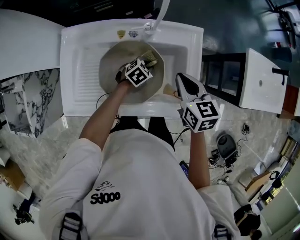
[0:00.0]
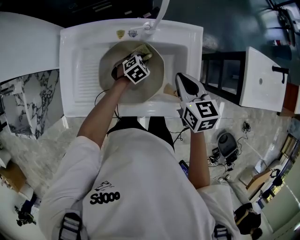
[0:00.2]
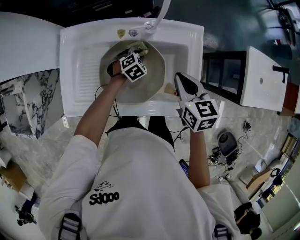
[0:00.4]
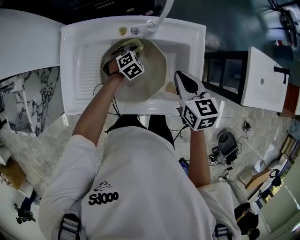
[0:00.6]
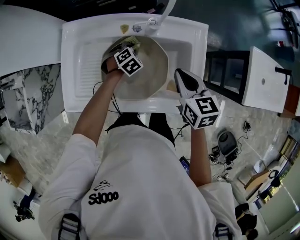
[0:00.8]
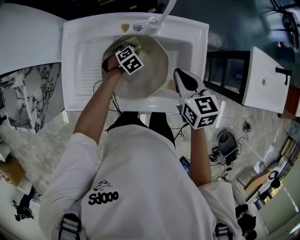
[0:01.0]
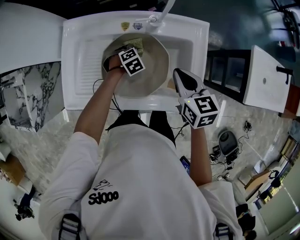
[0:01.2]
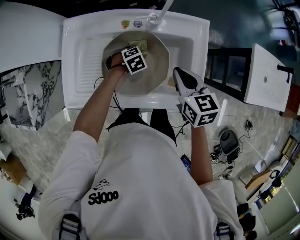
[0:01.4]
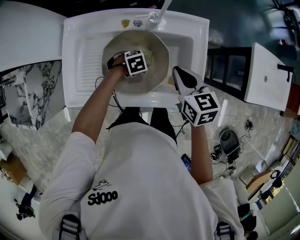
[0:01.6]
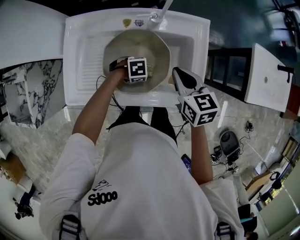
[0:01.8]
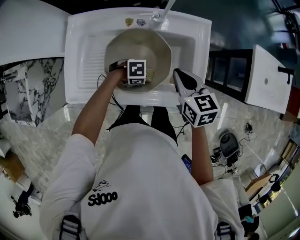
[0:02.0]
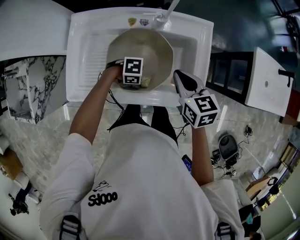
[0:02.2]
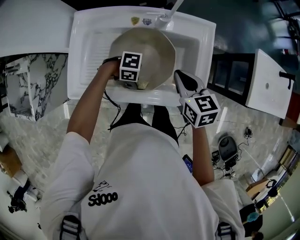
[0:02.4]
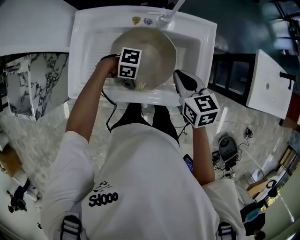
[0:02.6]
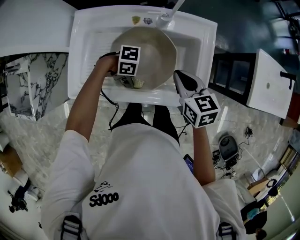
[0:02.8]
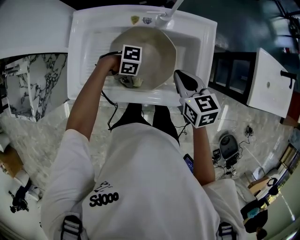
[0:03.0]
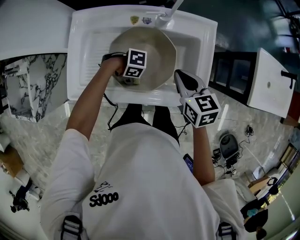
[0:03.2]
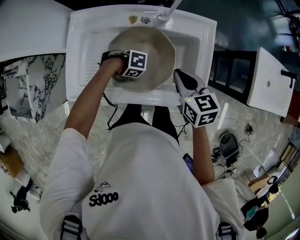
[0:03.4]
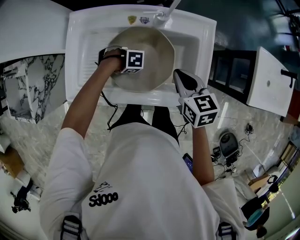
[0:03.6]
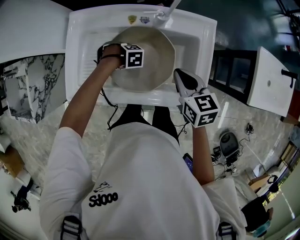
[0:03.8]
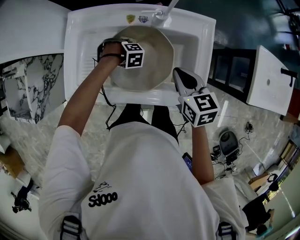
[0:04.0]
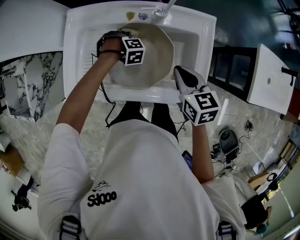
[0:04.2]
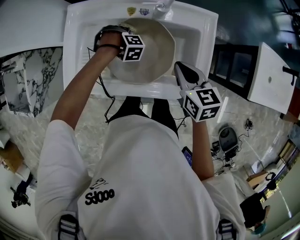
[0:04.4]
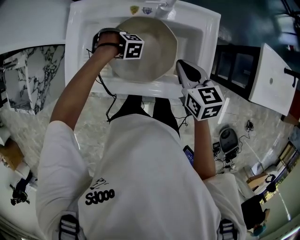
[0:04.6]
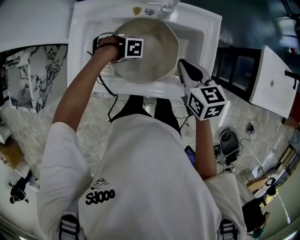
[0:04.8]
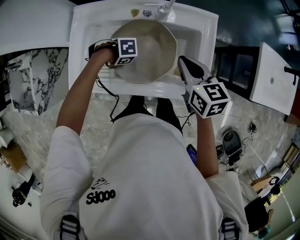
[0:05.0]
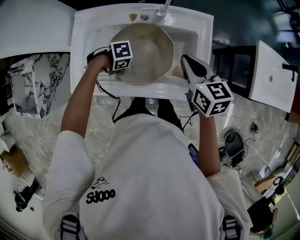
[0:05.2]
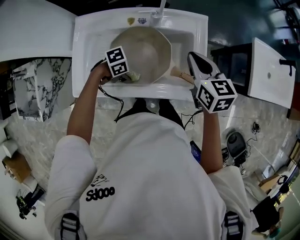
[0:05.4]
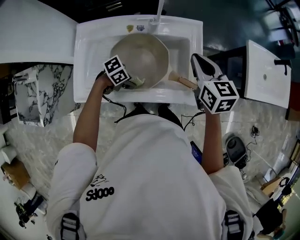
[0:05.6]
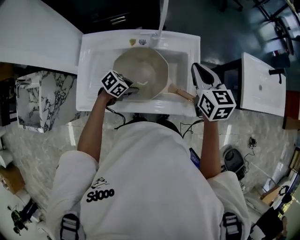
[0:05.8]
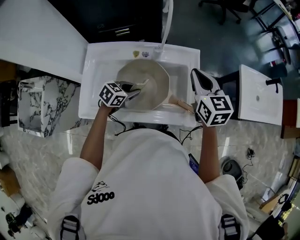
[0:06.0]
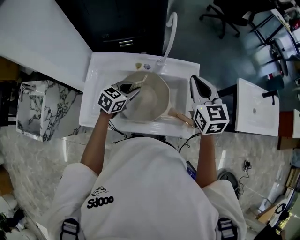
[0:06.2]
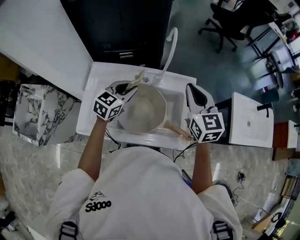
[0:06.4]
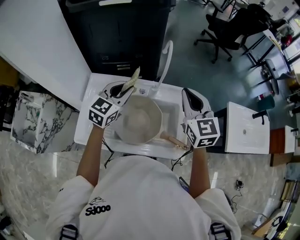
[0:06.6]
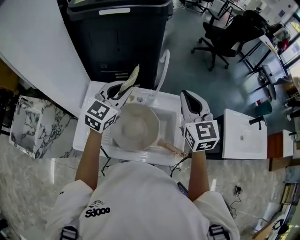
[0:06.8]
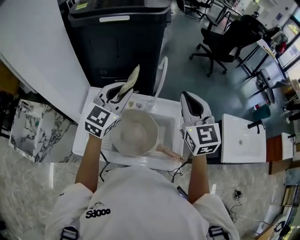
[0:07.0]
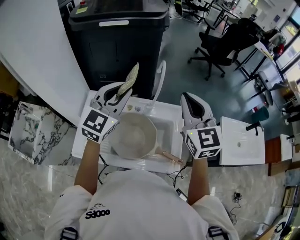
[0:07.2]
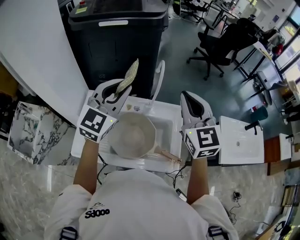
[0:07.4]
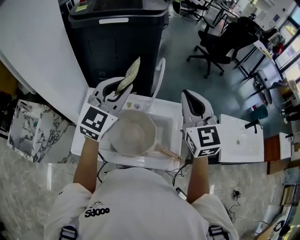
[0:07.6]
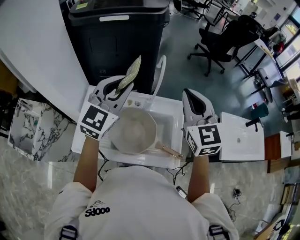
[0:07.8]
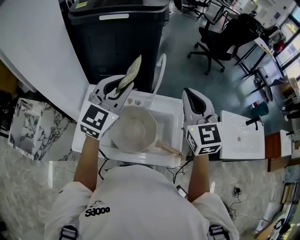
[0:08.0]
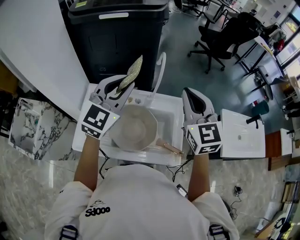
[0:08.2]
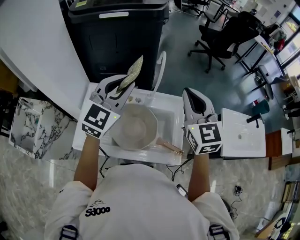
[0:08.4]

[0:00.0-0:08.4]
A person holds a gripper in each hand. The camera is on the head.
0:00.0 to 0:01.4: The left gripper changes its angle by approximately 20 degrees.
0:01.4 to 0:02.8: The left gripper shifts by some 20 cm, and tilts its fingers roughly 40 degrees upward.
0:02.8 to 0:04.2: The left gripper moves some 20 cm, and tips its fingers downward by some 40 degrees.
0:04.2 to 0:05.6: The left gripper shifts by some 20 cm, and points its fingers roughly 30 degrees further upward; the right gripper travels upward by some 10 cm.
0:05.6 to 0:07.0: The left gripper goes roughly 35 cm upward, and angles its fingers upward, by about 40 degrees. Meanwhile the right gripper moves upward, about 20 cm, and swivels some 30 degrees.
0:07.0 to 0:08.4: The left gripper heads upward, covering roughly 5 cm.

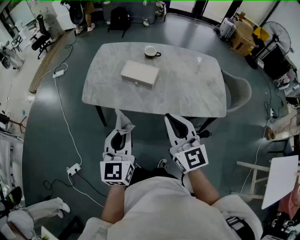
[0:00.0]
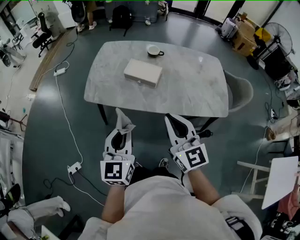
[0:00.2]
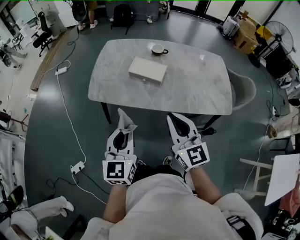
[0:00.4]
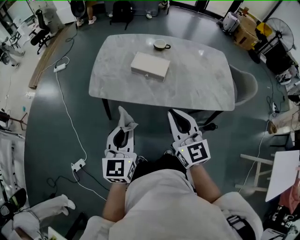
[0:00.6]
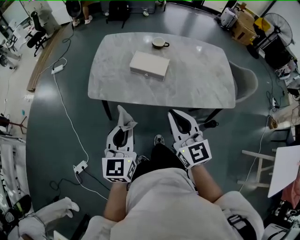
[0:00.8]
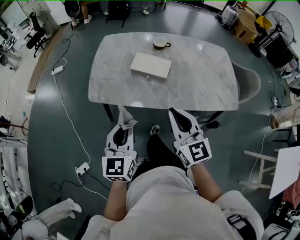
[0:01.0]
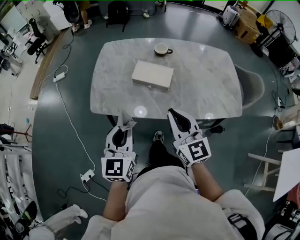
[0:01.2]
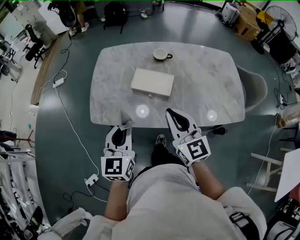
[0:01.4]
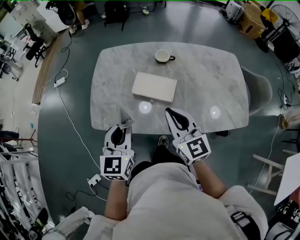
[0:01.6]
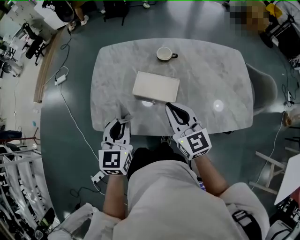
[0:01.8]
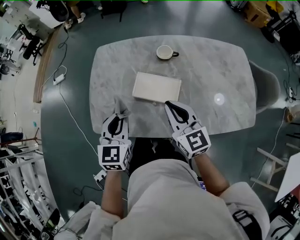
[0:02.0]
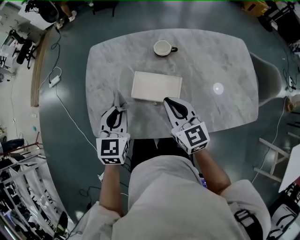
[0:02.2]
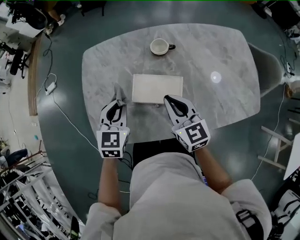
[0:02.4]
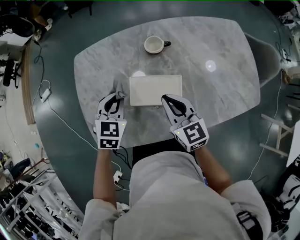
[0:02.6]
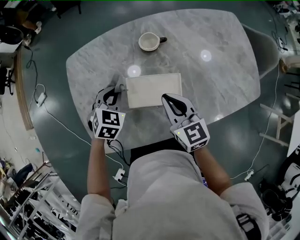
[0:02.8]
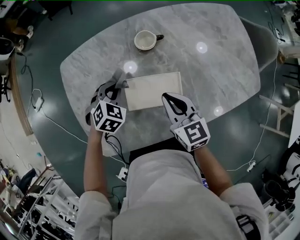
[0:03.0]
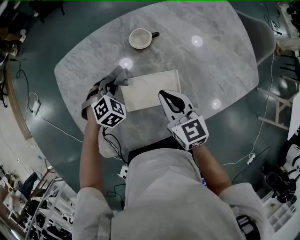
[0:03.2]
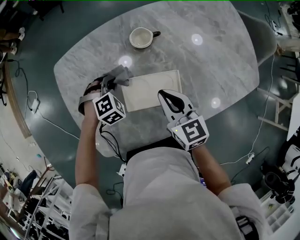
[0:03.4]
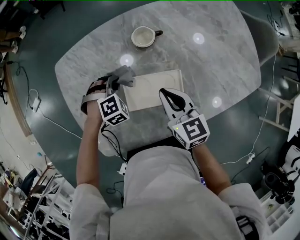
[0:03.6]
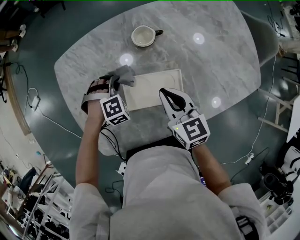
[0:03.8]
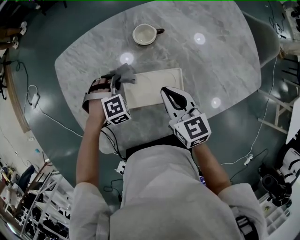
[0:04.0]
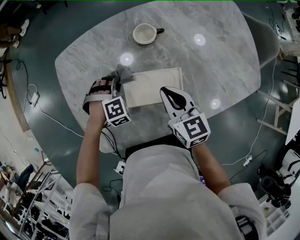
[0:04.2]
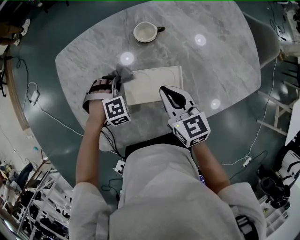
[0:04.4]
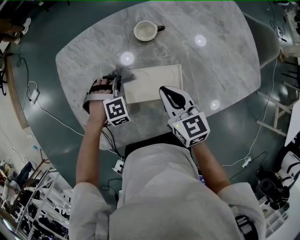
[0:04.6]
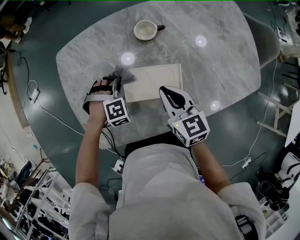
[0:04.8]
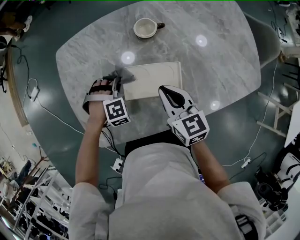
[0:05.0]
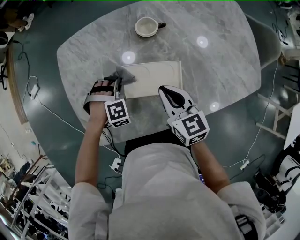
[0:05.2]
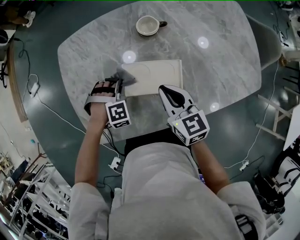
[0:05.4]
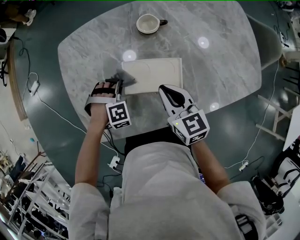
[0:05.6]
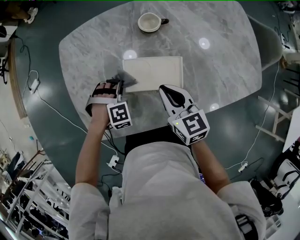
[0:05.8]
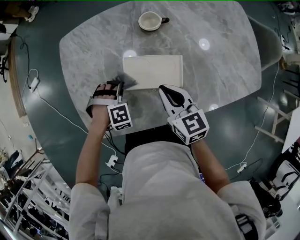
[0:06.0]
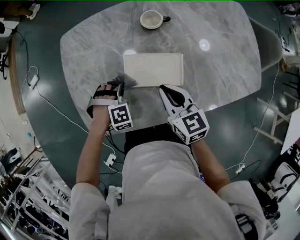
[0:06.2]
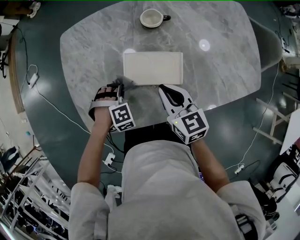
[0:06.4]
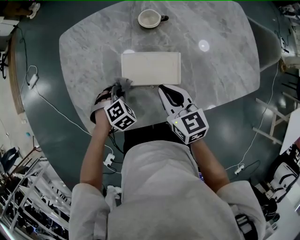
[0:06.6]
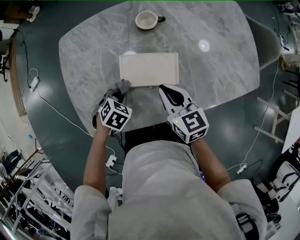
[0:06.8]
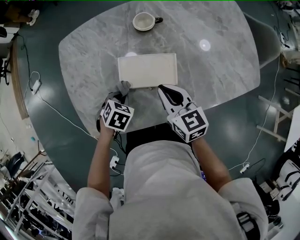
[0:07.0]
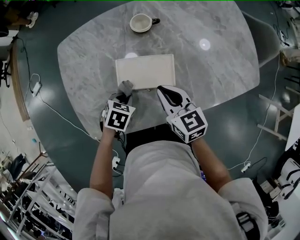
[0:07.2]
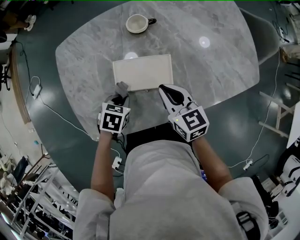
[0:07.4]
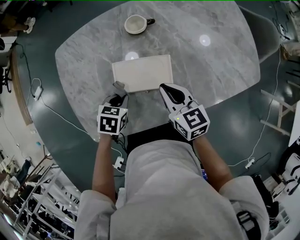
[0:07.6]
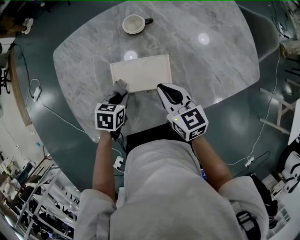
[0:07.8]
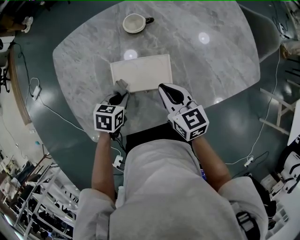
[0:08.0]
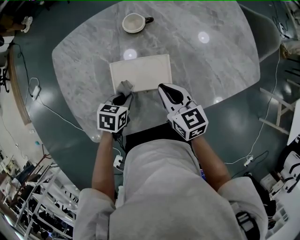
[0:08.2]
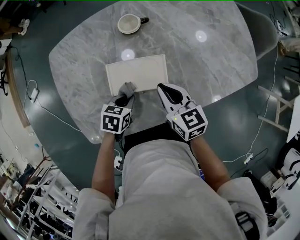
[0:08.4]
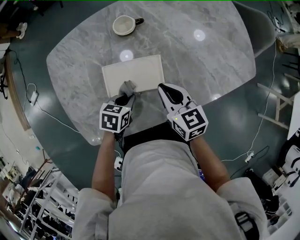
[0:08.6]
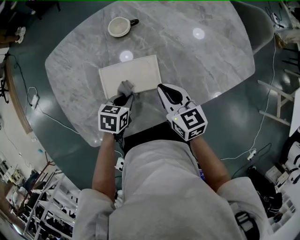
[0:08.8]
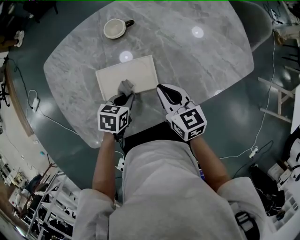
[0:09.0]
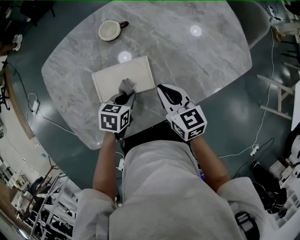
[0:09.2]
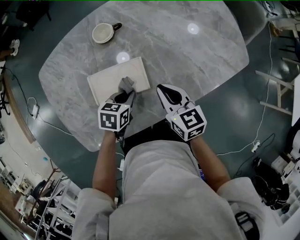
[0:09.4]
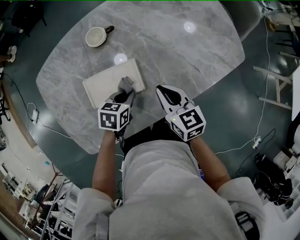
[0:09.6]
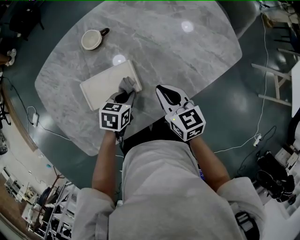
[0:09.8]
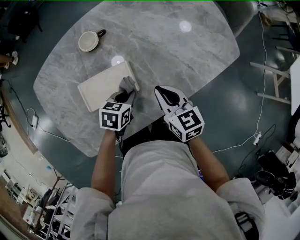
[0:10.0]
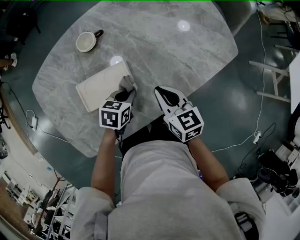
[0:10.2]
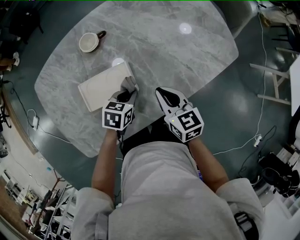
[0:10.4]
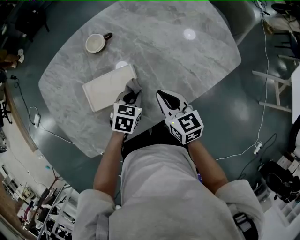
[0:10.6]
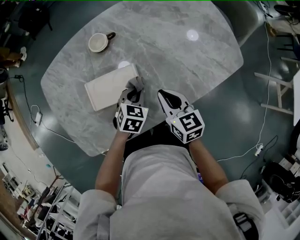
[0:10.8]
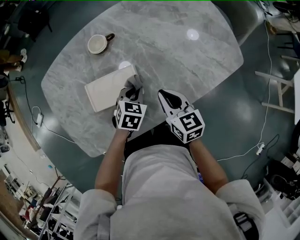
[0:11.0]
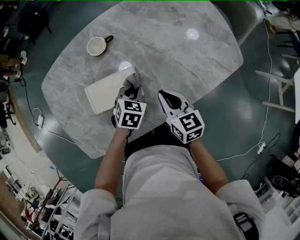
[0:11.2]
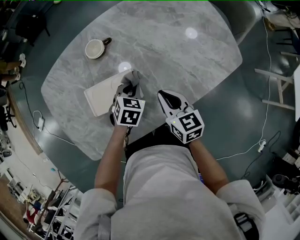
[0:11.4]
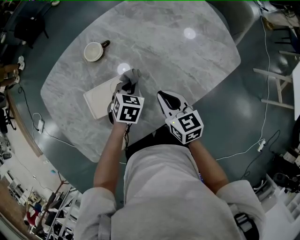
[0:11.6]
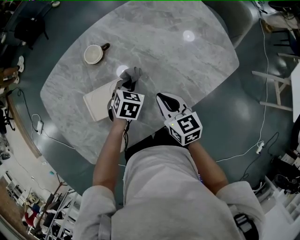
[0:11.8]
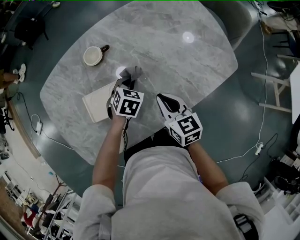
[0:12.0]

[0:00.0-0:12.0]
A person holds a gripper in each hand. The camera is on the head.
0:00.0 to 0:01.6: The two grippers go approximately 25 cm forward.
0:01.6 to 0:03.0: The left gripper is displaced forward and downward by approximately 40 cm, and tilts its fingers some 40 degrees downward. Meanwhile the right gripper travels forward and downward by roughly 25 cm, and rotates roughly 30 degrees.
0:03.0 to 0:04.4: The left gripper shifts roughly 5 cm downward, and swivels approximately 40 degrees.
0:04.4 to 0:06.0: The left gripper shifts about 10 cm backward, while the right gripper goes about 5 cm backward.
0:06.0 to 0:07.6: The left gripper moves some 5 cm, and twists some 70 degrees counterclockwise, seen from behind; the right gripper ends up approximately 5 cm from where it was.
0:07.6 to 0:09.0: The left gripper heads to the right, covering some 10 cm; the right gripper heads to the right, covering roughly 5 cm.
0:09.0 to 0:10.4: Both grippers move to the right, about 10 cm.
0:10.4 to 0:12.0: The left gripper shifts approximately 10 cm forward, and swivels roughly 20 degrees.

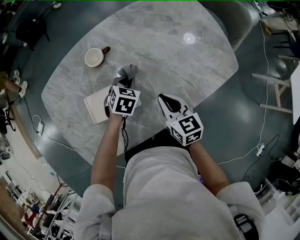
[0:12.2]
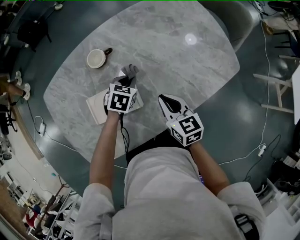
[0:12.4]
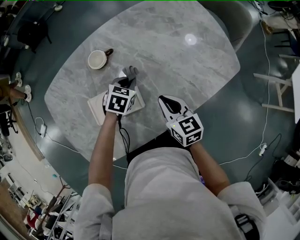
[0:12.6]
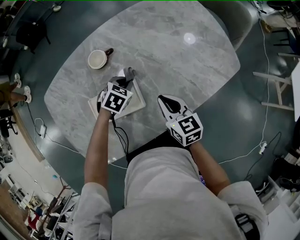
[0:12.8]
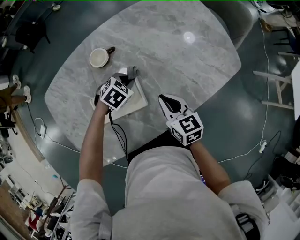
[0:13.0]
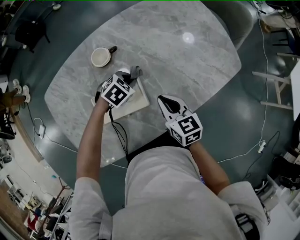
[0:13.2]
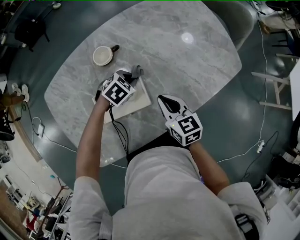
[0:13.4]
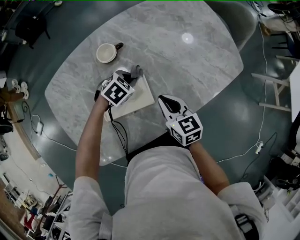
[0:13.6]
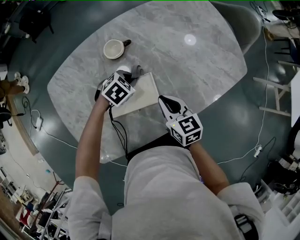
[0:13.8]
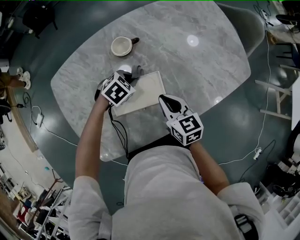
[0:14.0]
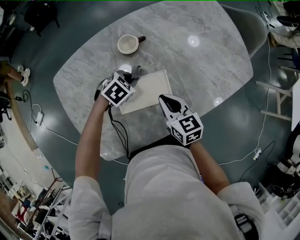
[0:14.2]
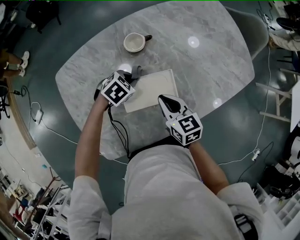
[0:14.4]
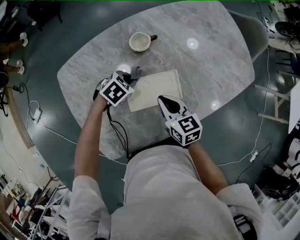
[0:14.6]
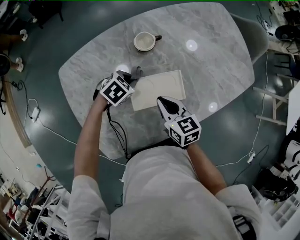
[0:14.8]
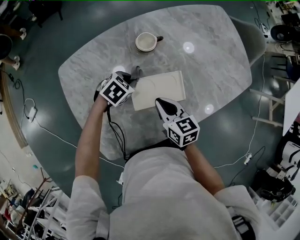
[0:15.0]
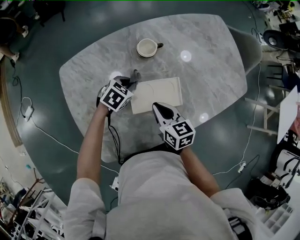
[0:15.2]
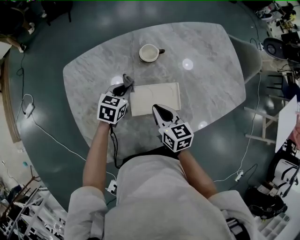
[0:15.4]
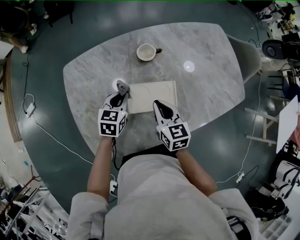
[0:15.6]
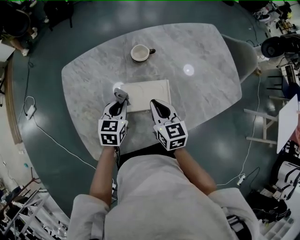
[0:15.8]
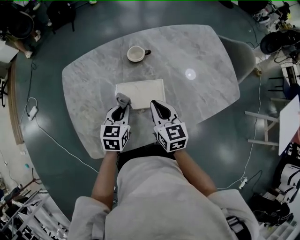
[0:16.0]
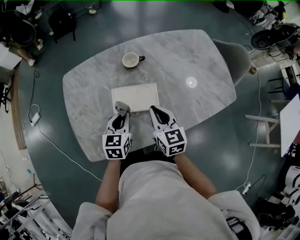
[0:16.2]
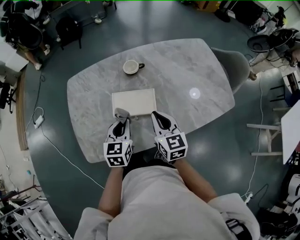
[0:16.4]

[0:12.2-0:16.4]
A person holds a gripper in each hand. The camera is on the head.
0:12.2 to 0:13.6: The grippers both shift to the left by roughly 5 cm. The left gripper swivels roughly 30 degrees.
0:13.6 to 0:15.0: Both grippers move to the left and backward, roughly 15 cm.
0:15.0 to 0:16.4: The left gripper ends up some 25 cm from where it was, and changes its angle by approximately 60 degrees, while the right gripper shifts by approximately 20 cm.
